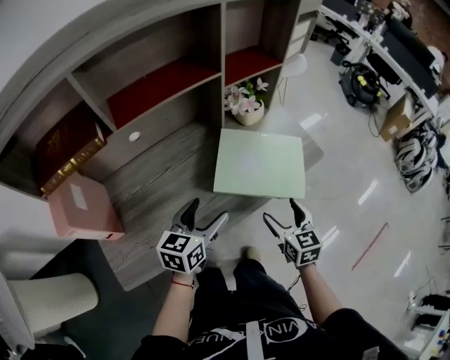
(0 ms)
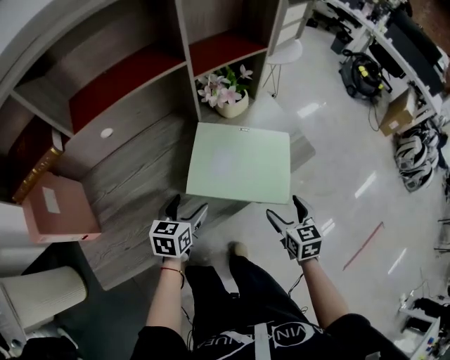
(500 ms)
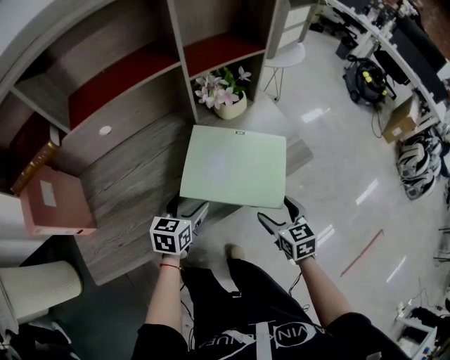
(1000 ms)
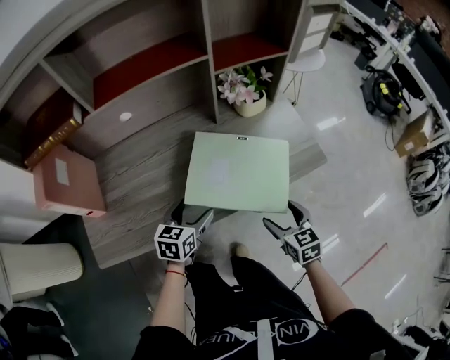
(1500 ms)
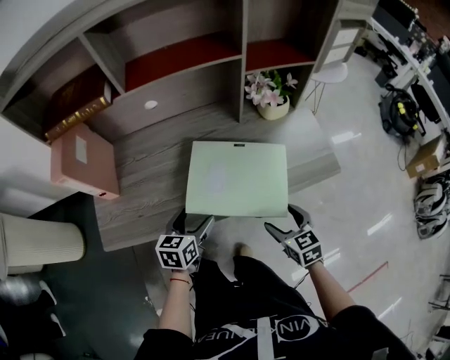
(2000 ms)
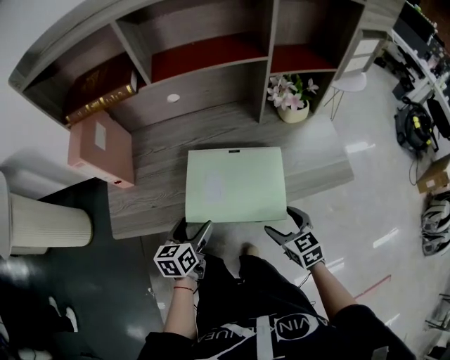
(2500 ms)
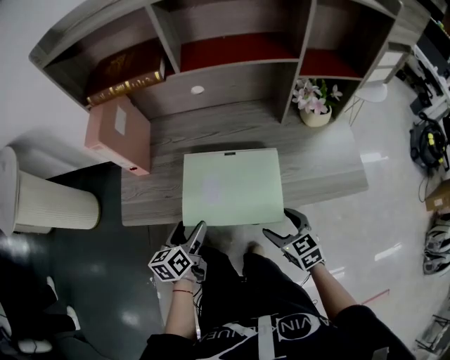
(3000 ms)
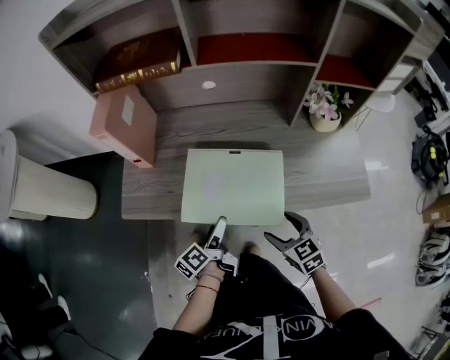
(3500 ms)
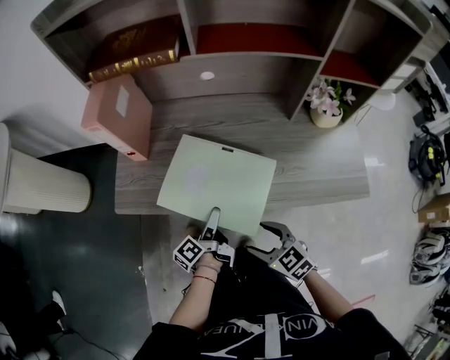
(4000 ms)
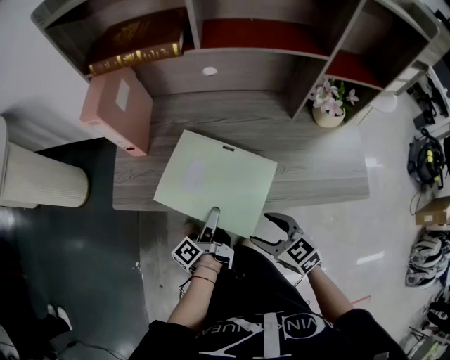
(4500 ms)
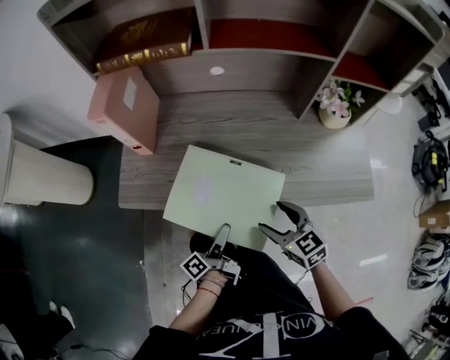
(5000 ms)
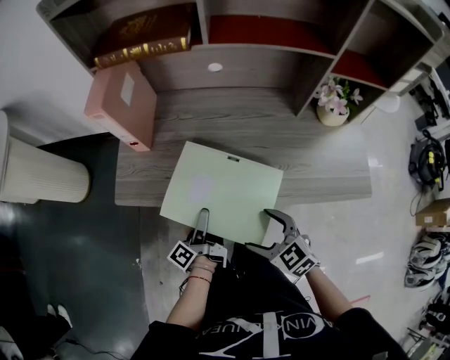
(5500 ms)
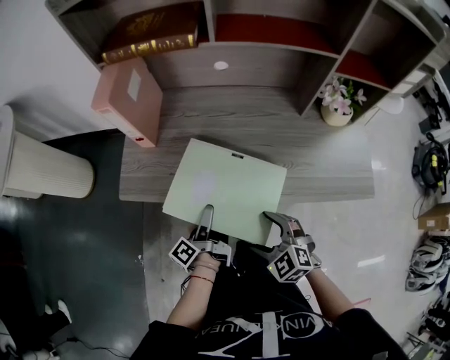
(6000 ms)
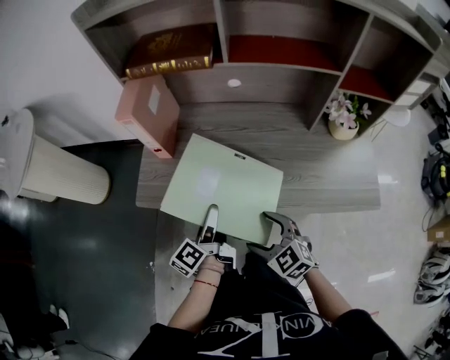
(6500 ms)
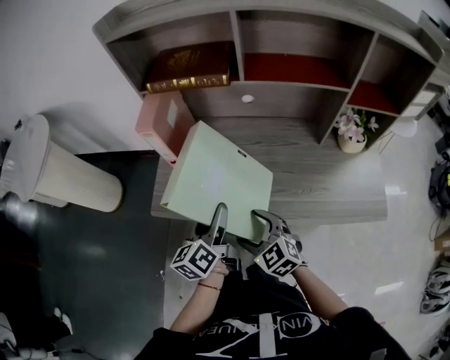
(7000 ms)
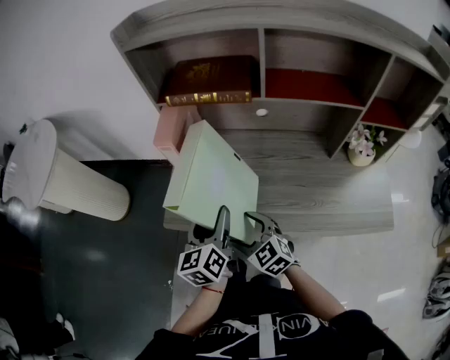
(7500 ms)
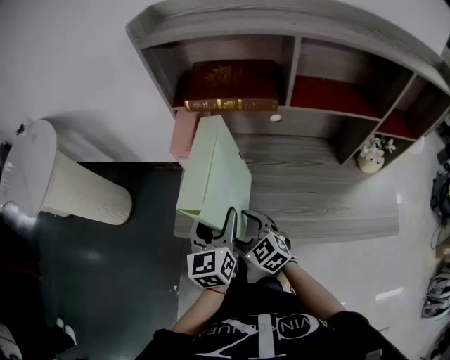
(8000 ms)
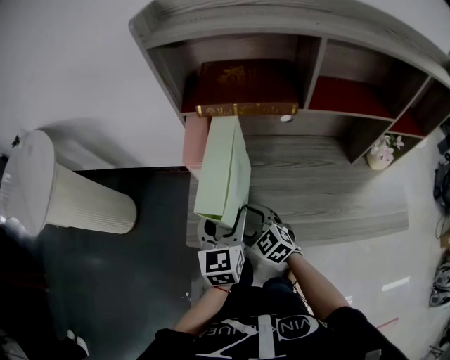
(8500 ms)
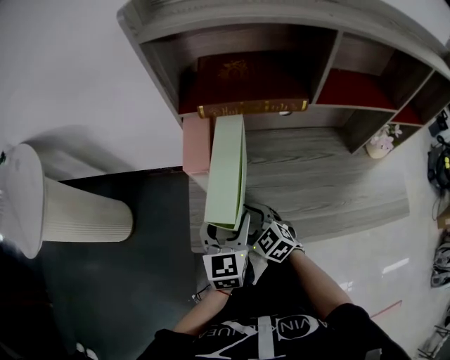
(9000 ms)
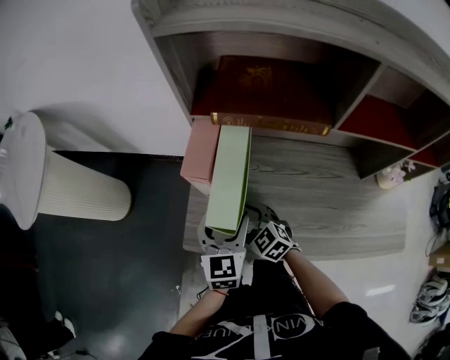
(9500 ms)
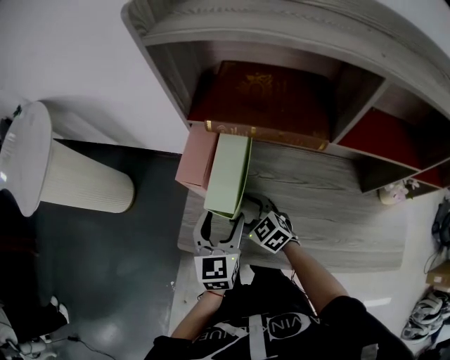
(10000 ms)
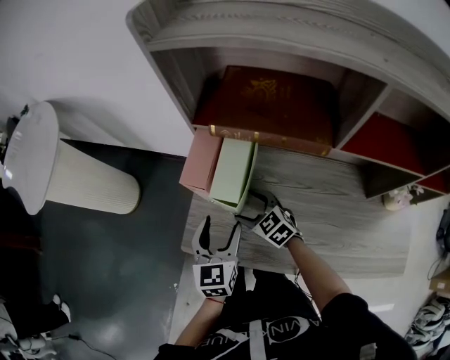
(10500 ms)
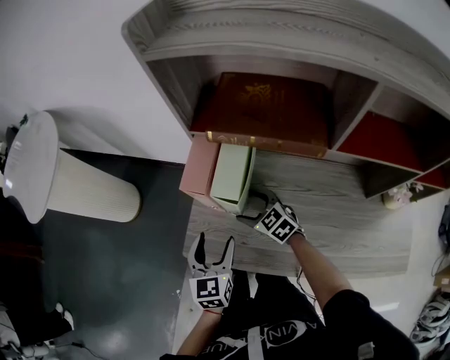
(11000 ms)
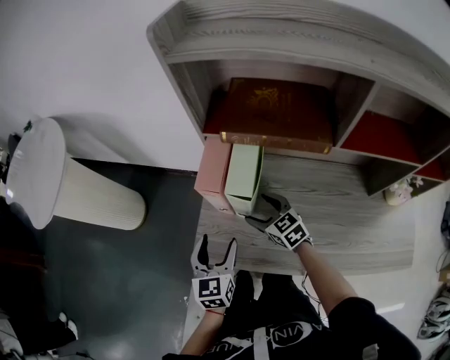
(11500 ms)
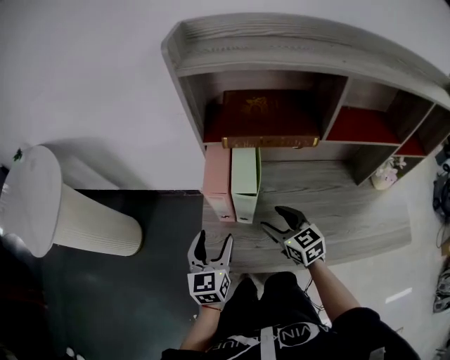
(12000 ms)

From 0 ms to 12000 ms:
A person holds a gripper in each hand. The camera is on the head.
From 0 ms to 2000 ms: The right gripper moves downward, roughly 5 cm, and swivels roughly 30 degrees. The left gripper moves downward, roughly 10 cm, and turns by some 30 degrees.
From 2000 ms to 4000 ms: The right gripper ends up roughly 20 cm from where it was, and turns by some 40 degrees. The left gripper changes place by approximately 10 cm, and rotates around the line of its fingers by roughly 70 degrees, counterclockwise from behind.
From 4000 ms to 6000 ms: The right gripper turns by about 30 degrees.
From 6000 ms to 8000 ms: The left gripper goes approximately 25 cm upward, forward and to the left, and twists about 80 degrees clockwise, seen from behind; the right gripper shifts about 30 cm forward and to the left.
From 8000 ms to 10000 ms: The right gripper moves forward, about 15 cm, while the left gripper shifts about 10 cm forward.
From 10000 ms to 12000 ms: The right gripper goes some 10 cm upward, and changes its angle by some 30 degrees. The left gripper heads to the left, covering about 10 cm.

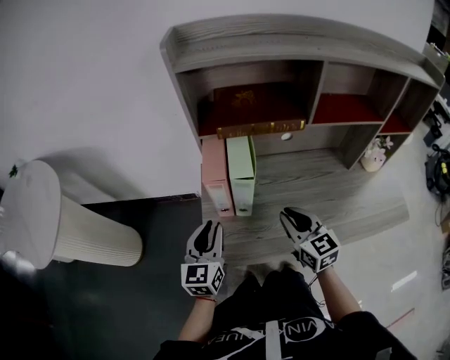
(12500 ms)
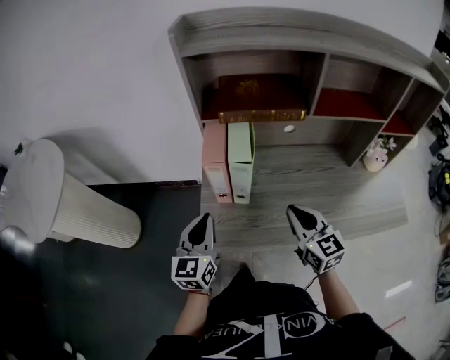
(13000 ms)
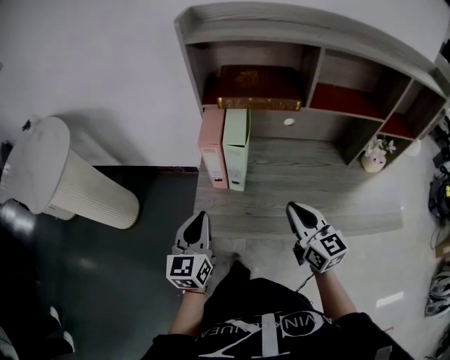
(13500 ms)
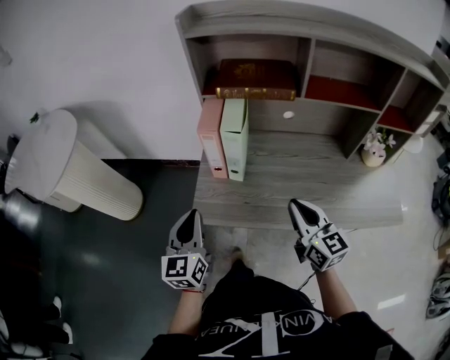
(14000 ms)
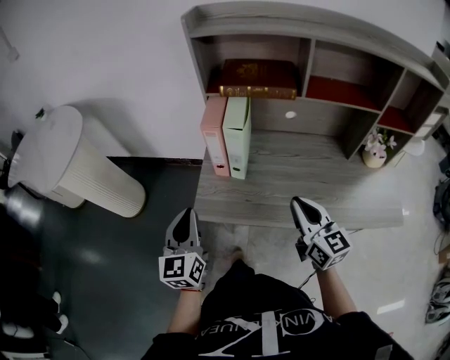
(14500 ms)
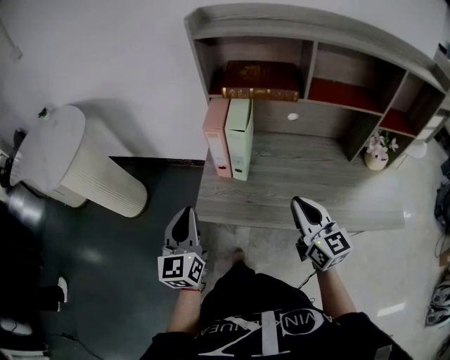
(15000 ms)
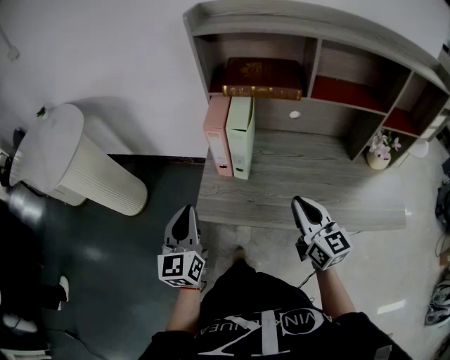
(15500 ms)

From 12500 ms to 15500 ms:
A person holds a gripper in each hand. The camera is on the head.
From 12500 ms to 14000 ms: Both grippers move backward, about 10 cm.
From 14000 ms to 15500 ms: The grippers move only a little.

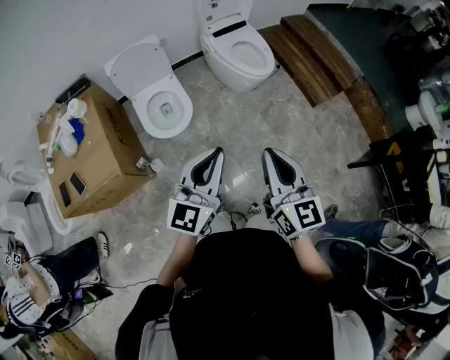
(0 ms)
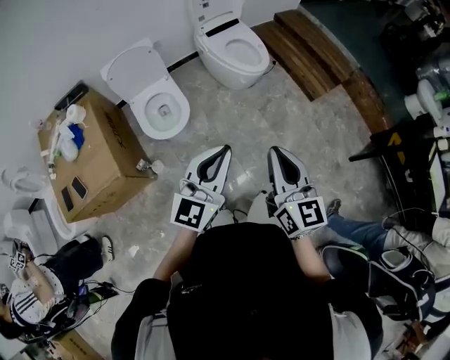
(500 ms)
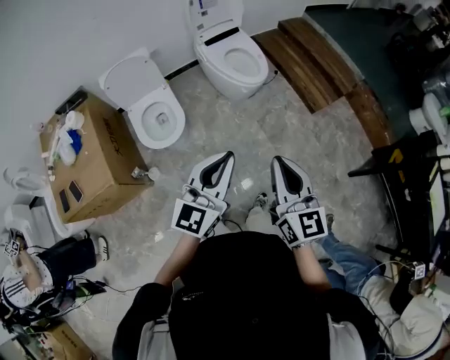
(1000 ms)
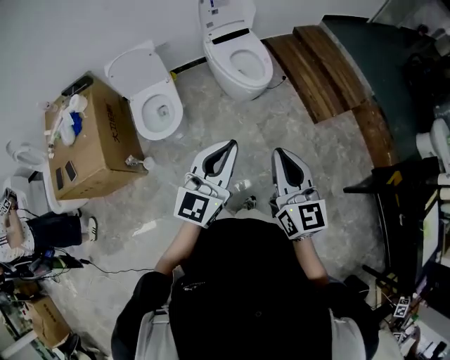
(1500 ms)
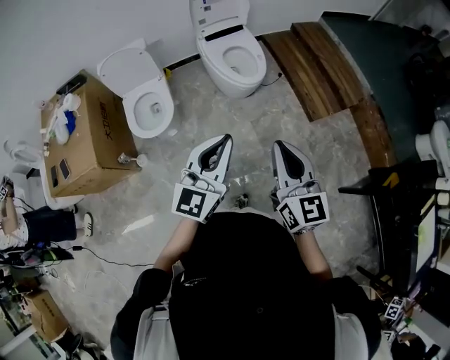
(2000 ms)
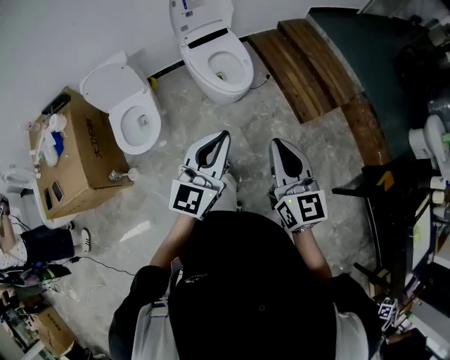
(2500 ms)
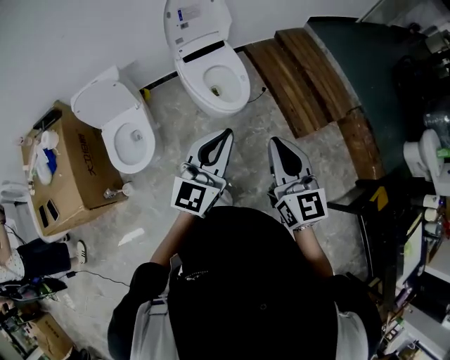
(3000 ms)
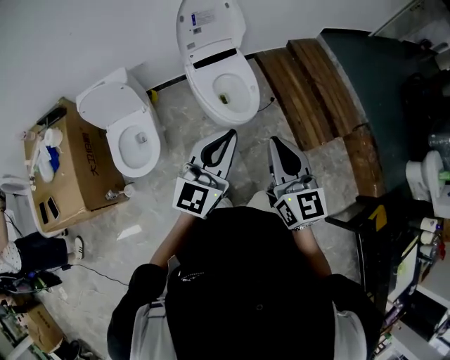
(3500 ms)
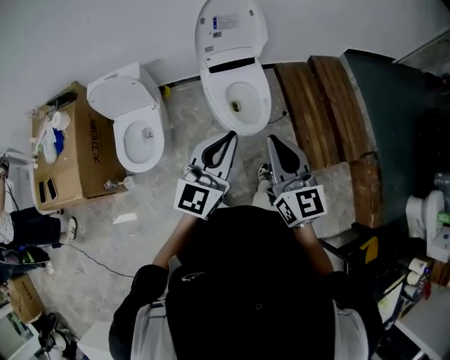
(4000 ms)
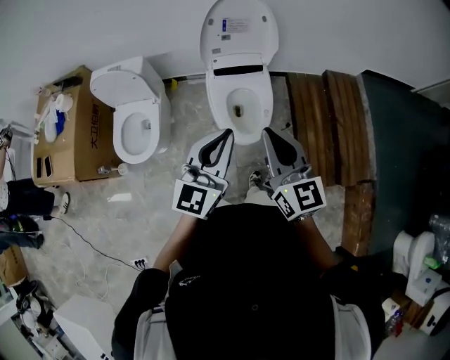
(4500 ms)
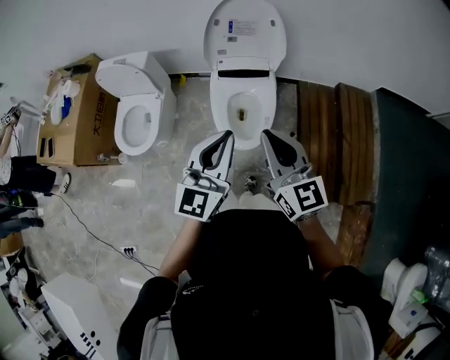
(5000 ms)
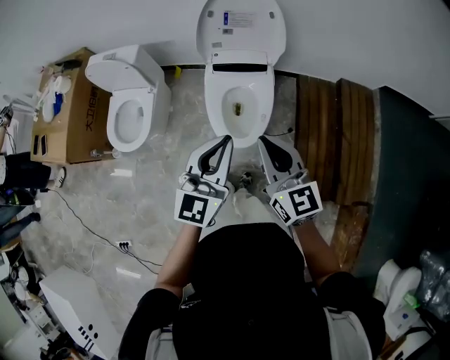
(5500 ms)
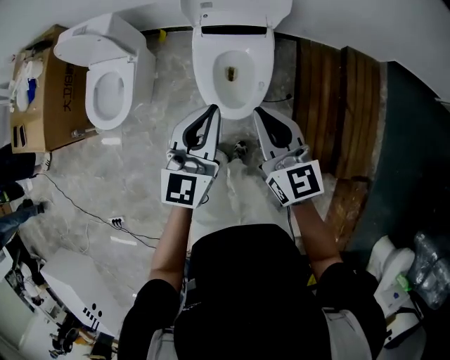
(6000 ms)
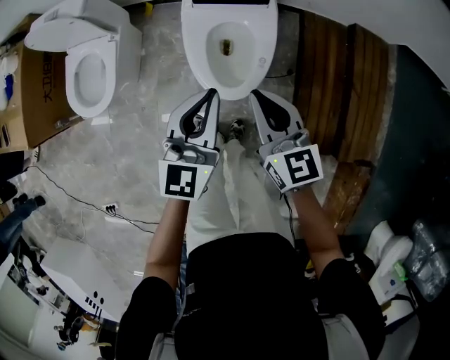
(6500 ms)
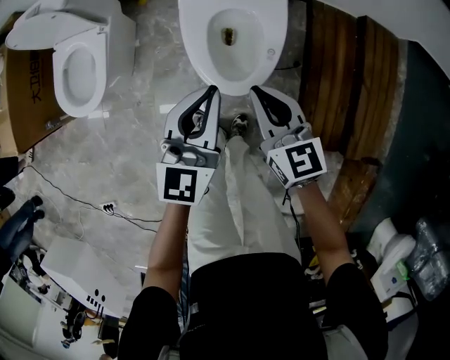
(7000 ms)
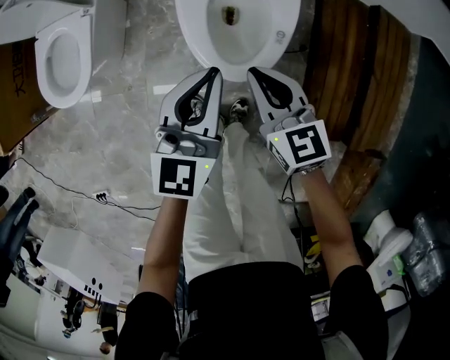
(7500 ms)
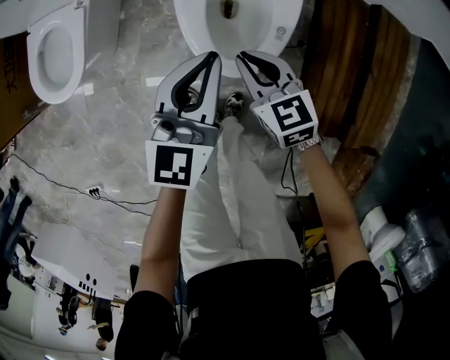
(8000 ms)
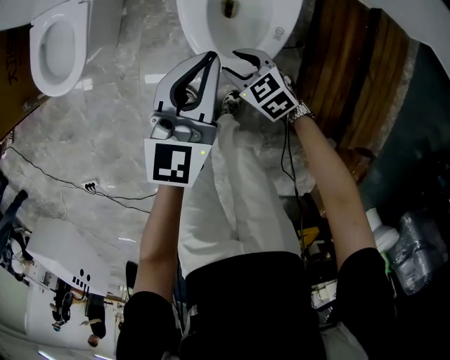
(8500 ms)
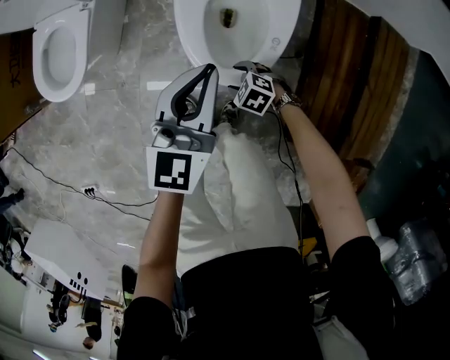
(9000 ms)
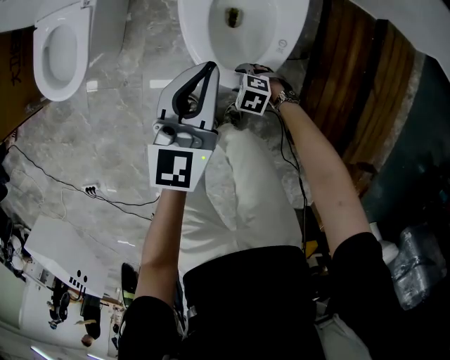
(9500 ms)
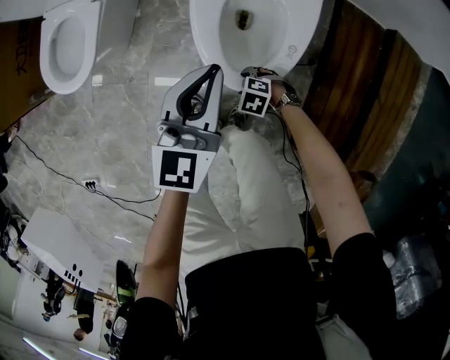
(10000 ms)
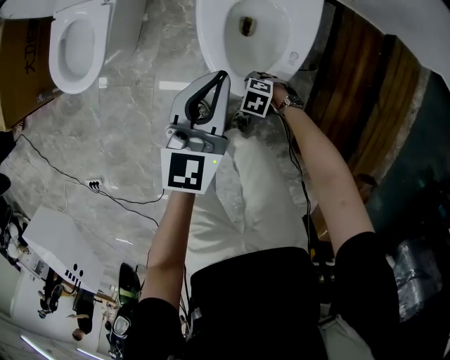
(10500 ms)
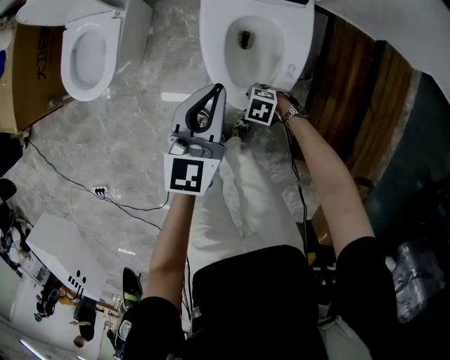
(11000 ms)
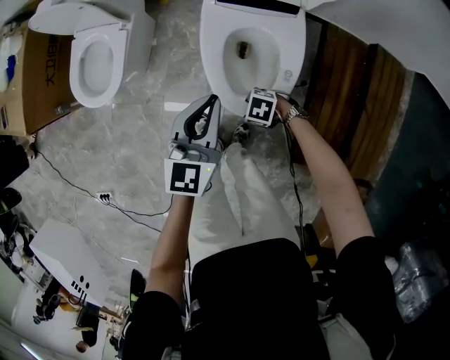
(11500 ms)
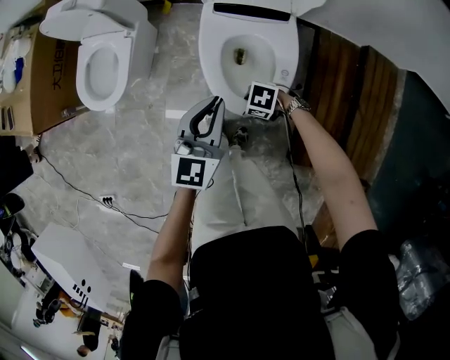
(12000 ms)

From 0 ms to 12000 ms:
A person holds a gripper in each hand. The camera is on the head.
From 0 ms to 2000 ms: Both grippers move to the right and forward, roughly 30 cm.
From 2000 ms to 4000 ms: The two grippers go approximately 35 cm forward.
From 4000 ms to 6000 ms: The right gripper travels forward, downward and to the right by approximately 30 cm, and changes its angle by some 30 degrees. Meanwhile the left gripper is displaced forward, to the right and downward by approximately 25 cm, and swivels approximately 30 degrees.
From 6000 ms to 8000 ms: Both grippers travel together downward, approximately 30 cm. The right gripper rotates approximately 30 degrees.
From 8000 ms to 10000 ms: The right gripper heads downward, covering some 25 cm, points its fingers about 40 degrees further downward, and opens.
From 10000 ms to 12000 ms: The left gripper heads upward, covering about 10 cm, while the right gripper travels upward by about 20 cm.
